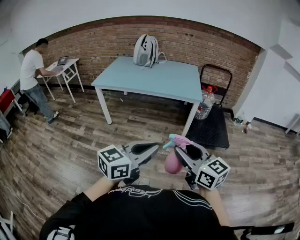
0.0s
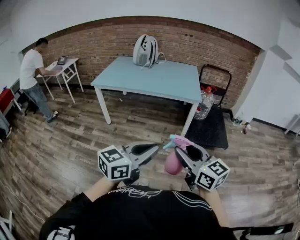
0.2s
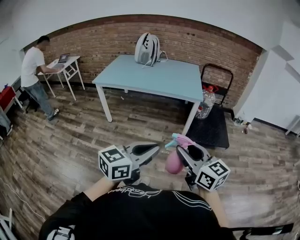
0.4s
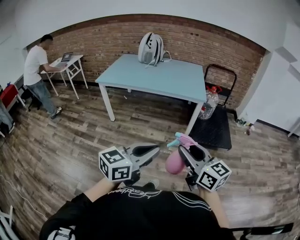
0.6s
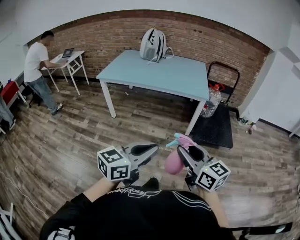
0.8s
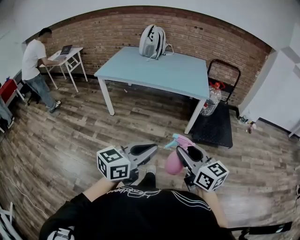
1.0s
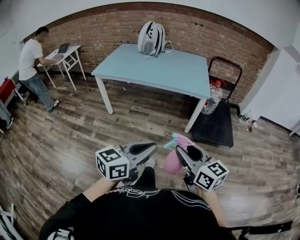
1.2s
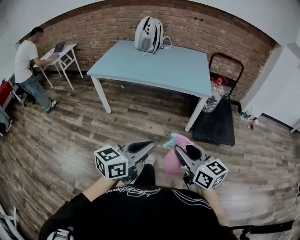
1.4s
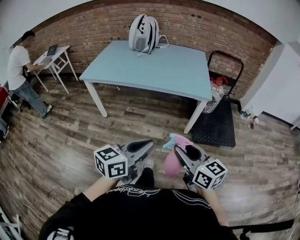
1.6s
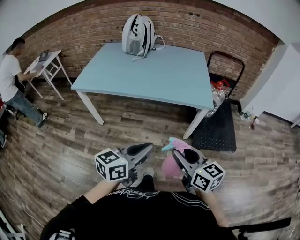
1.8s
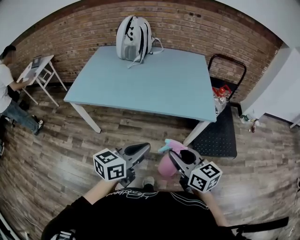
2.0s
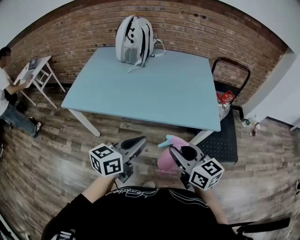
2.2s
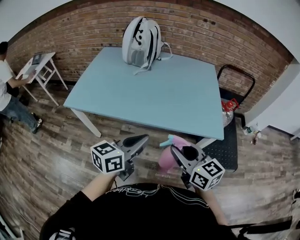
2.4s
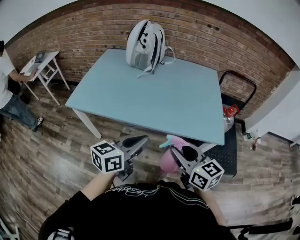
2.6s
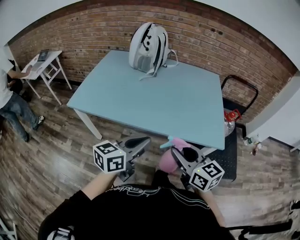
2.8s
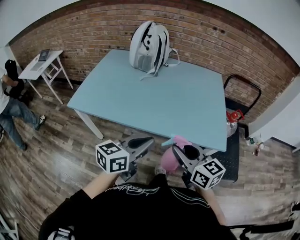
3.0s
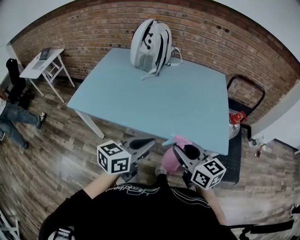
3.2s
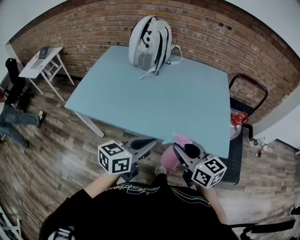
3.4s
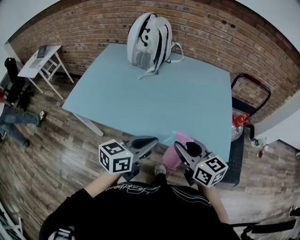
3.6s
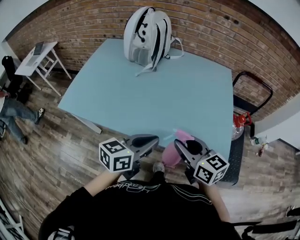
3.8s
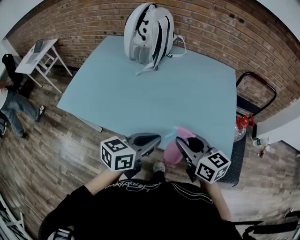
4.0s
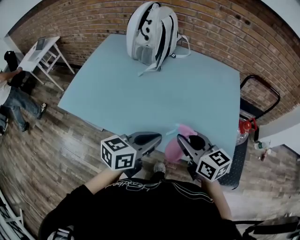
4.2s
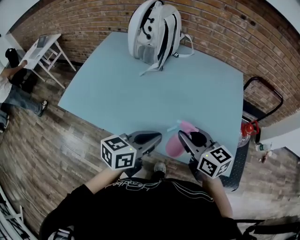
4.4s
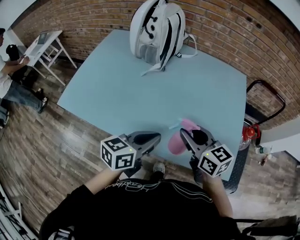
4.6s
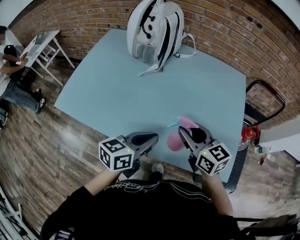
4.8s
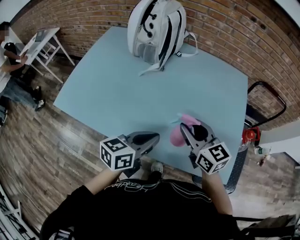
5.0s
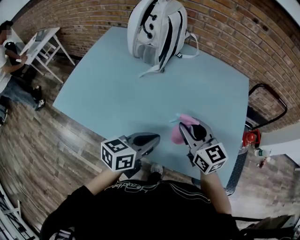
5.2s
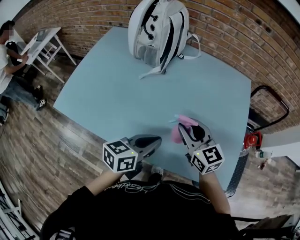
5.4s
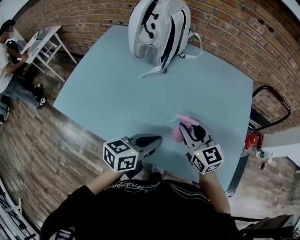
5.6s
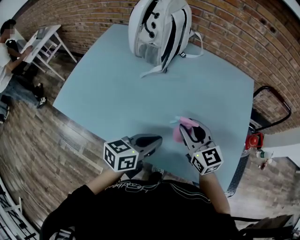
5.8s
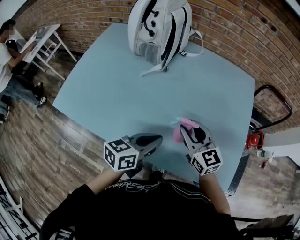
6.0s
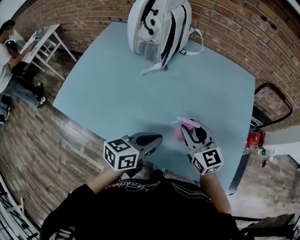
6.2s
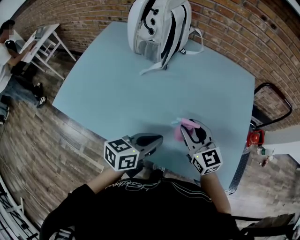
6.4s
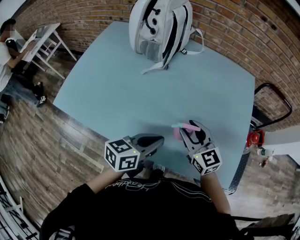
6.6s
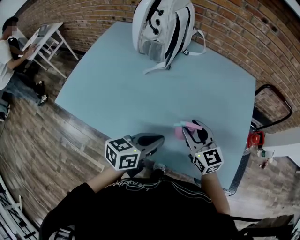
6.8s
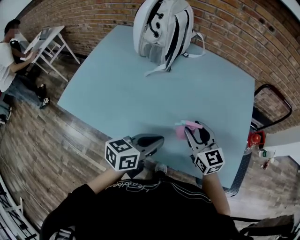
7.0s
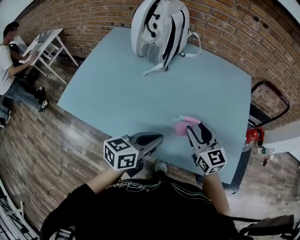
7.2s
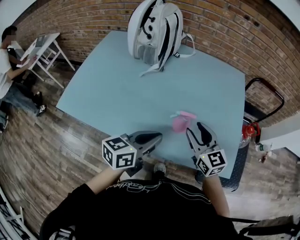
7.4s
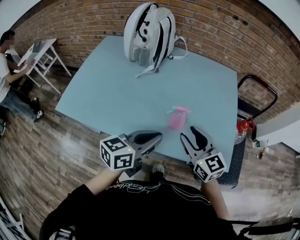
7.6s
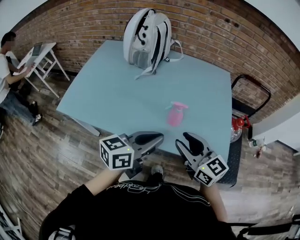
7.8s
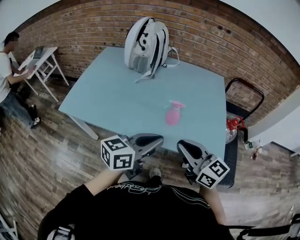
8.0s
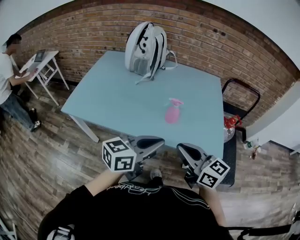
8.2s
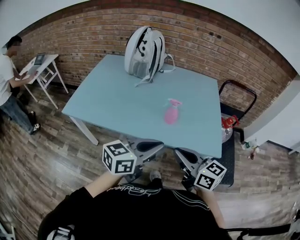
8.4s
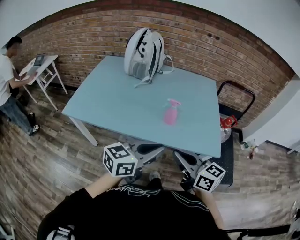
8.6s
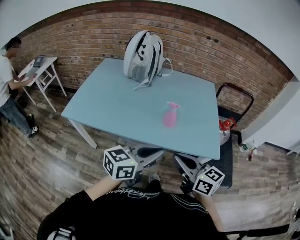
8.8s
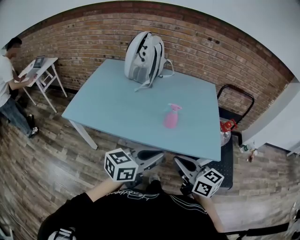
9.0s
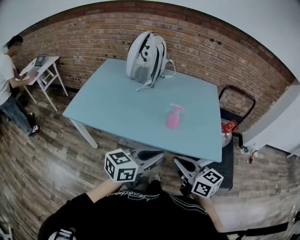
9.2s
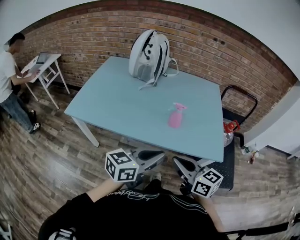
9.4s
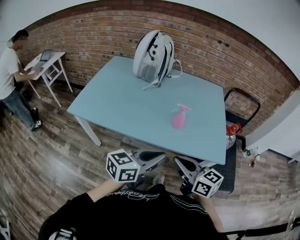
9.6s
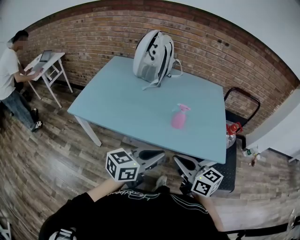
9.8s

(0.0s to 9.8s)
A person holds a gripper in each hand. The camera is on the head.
0.0s - 1.4s: The two grippers go some 15 cm forward and downward.
1.4s - 2.8s: Both grippers are carried forward, about 50 cm.
2.8s - 4.2s: The two grippers go approximately 20 cm forward.
4.2s - 5.6s: The left gripper is displaced forward and downward by some 10 cm. Meanwhile the right gripper travels forward by about 15 cm.
5.6s - 7.0s: The grippers move only a little.
7.0s - 8.4s: Both grippers move backward and upward, roughly 30 cm. The right gripper rotates roughly 20 degrees, and closes. The left gripper rotates roughly 20 degrees.
8.4s - 9.8s: The right gripper changes place by roughly 5 cm.

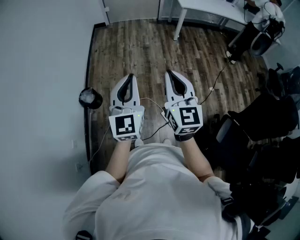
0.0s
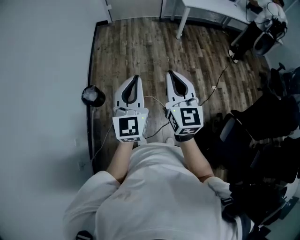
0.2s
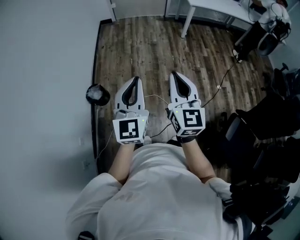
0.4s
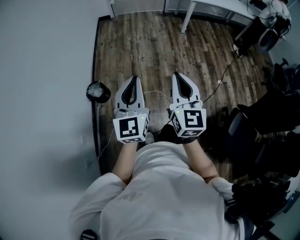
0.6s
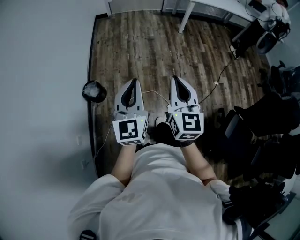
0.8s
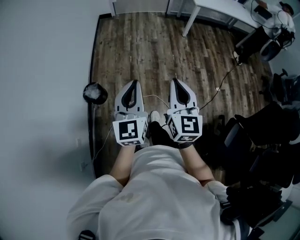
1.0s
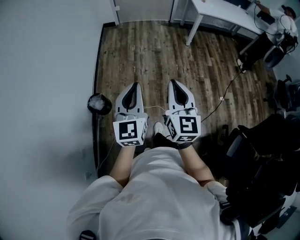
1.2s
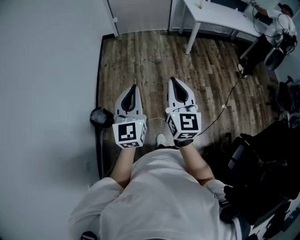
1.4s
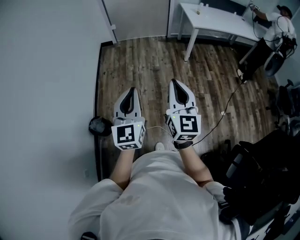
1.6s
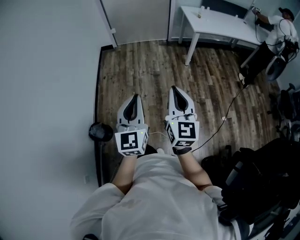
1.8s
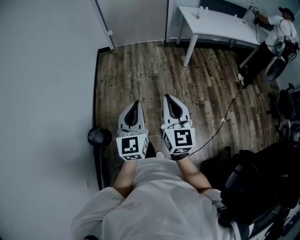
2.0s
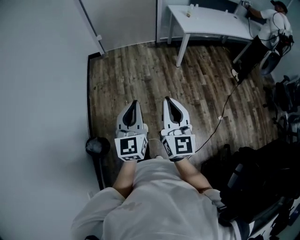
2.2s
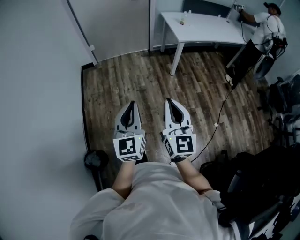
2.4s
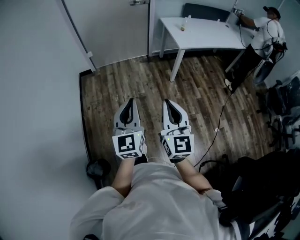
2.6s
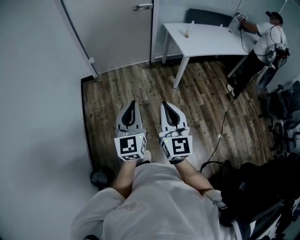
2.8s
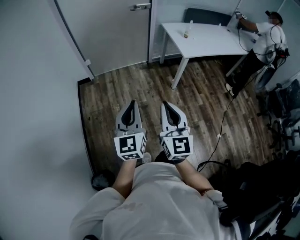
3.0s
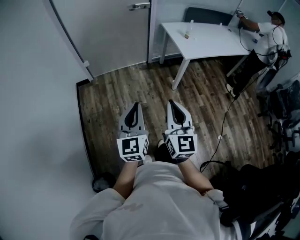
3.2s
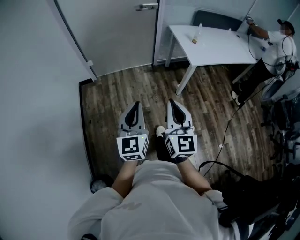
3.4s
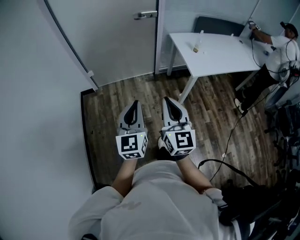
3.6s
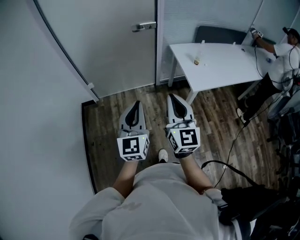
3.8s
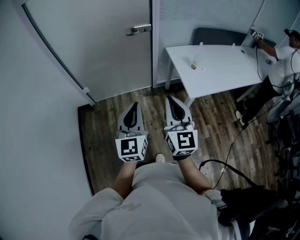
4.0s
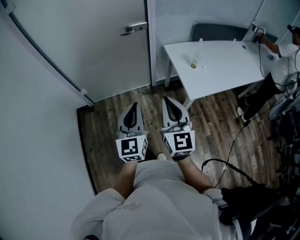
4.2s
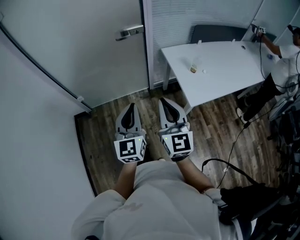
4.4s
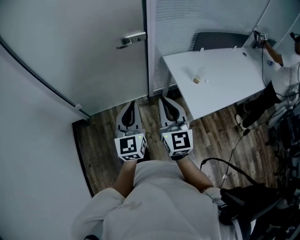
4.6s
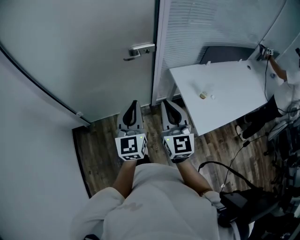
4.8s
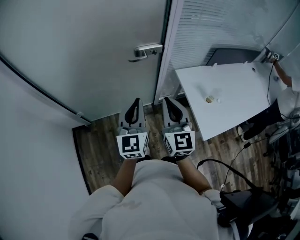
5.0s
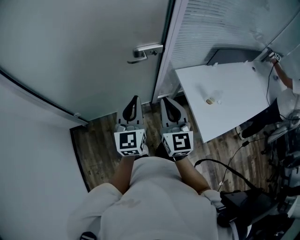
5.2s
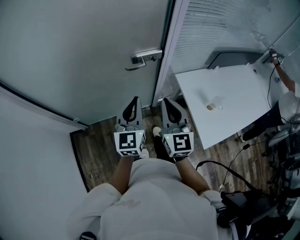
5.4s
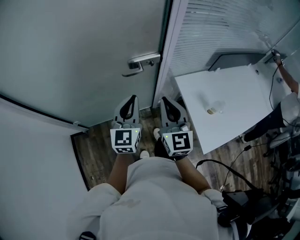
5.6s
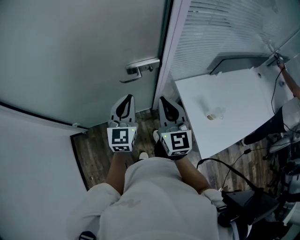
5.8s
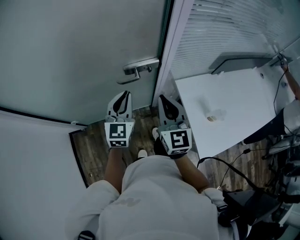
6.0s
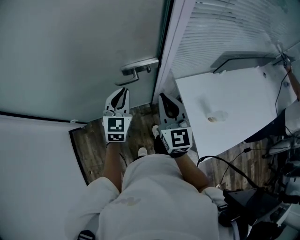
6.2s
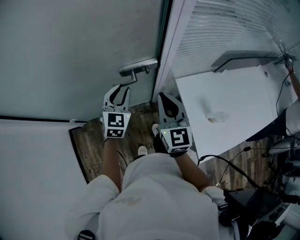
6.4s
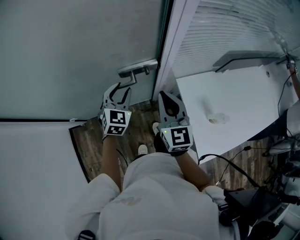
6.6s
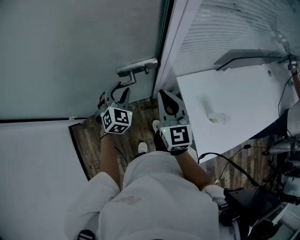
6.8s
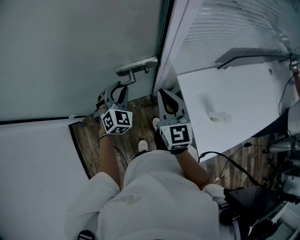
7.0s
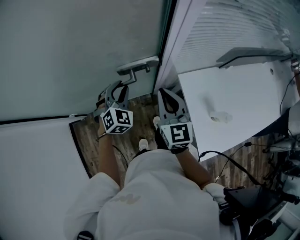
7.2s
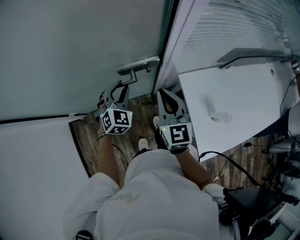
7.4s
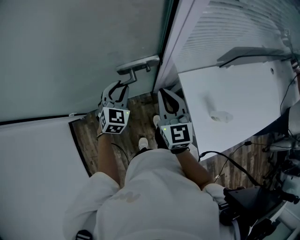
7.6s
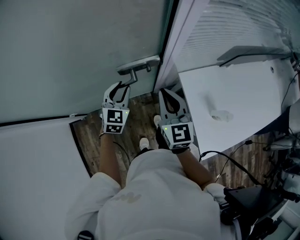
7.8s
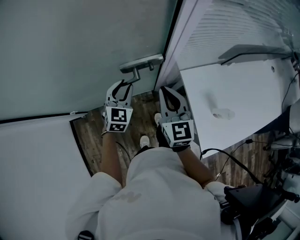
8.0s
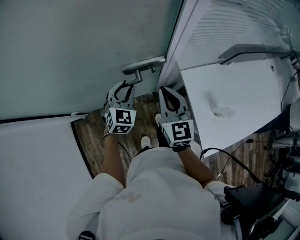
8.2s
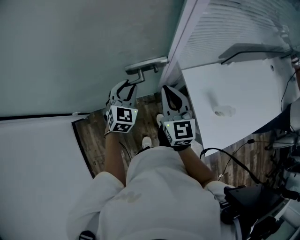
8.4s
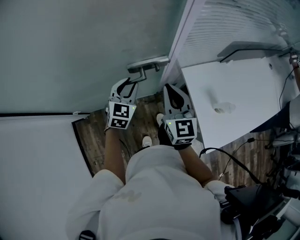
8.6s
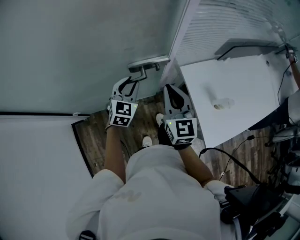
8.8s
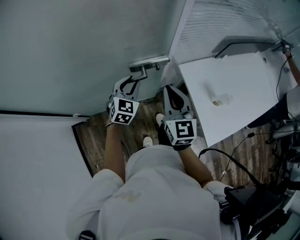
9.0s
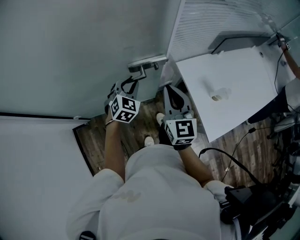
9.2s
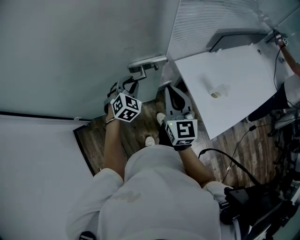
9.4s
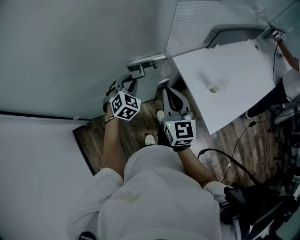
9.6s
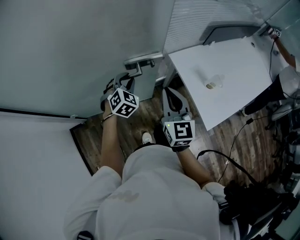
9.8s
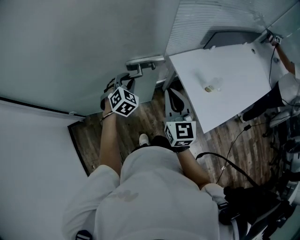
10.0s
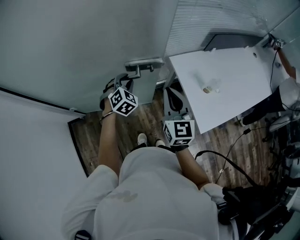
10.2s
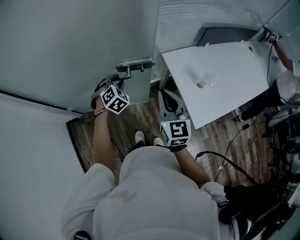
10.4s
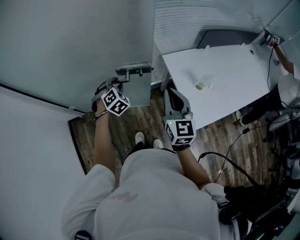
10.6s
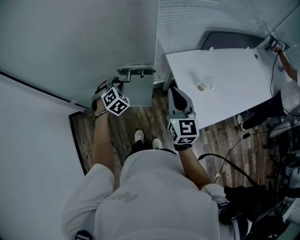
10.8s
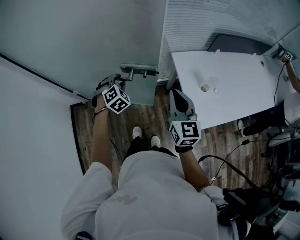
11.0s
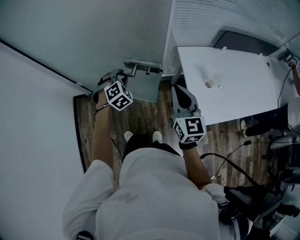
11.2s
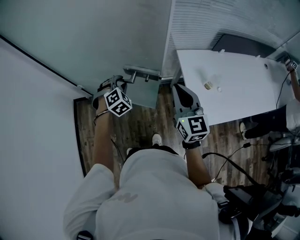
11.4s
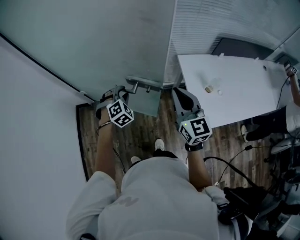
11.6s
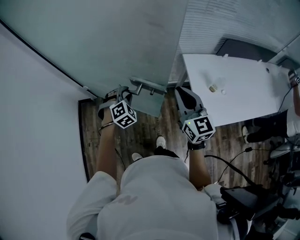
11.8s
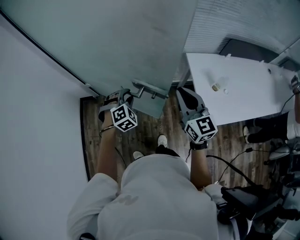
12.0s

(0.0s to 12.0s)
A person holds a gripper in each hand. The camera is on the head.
0.0s - 1.6s: Both grippers move forward, roughly 25 cm.
1.6s - 3.0s: The grippers both shift forward by some 40 cm.
3.0s - 4.4s: The pair of grippers is taken forward, approximately 50 cm.
4.4s - 6.0s: The pair of grippers is taken forward, approximately 50 cm.
6.0s - 7.6s: The right gripper shifts some 10 cm forward and downward. Meanwhile the left gripper goes some 15 cm downward and forward, turns by some 30 degrees, and opens up.
7.6s - 9.0s: The left gripper heads backward, covering approximately 5 cm. Meanwhile the right gripper is displaced backward by approximately 10 cm.
9.0s - 10.4s: The left gripper heads backward, covering about 10 cm, and turns by roughly 30 degrees. The right gripper goes roughly 15 cm backward and to the right.
10.4s - 12.0s: The left gripper heads backward, covering roughly 20 cm, while the right gripper moves backward, approximately 10 cm, and turns by some 30 degrees.

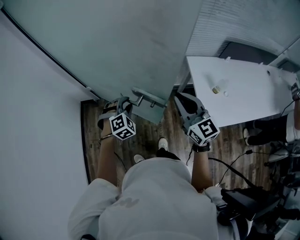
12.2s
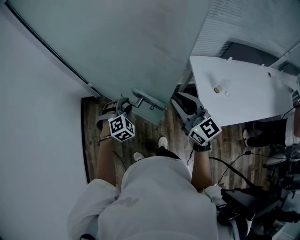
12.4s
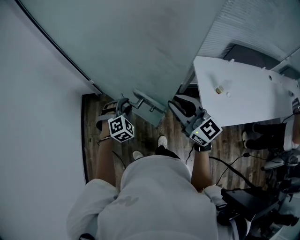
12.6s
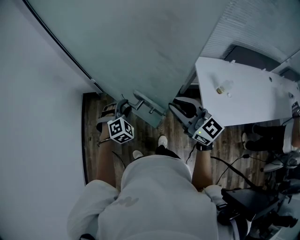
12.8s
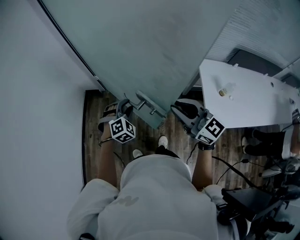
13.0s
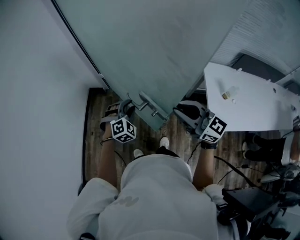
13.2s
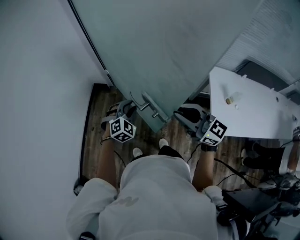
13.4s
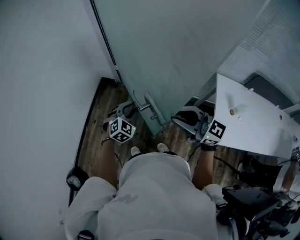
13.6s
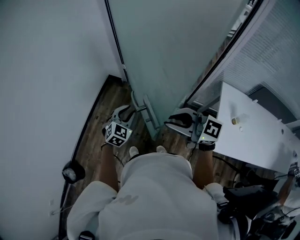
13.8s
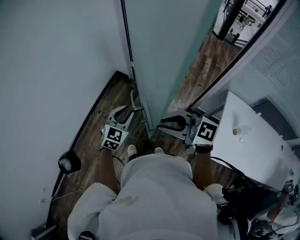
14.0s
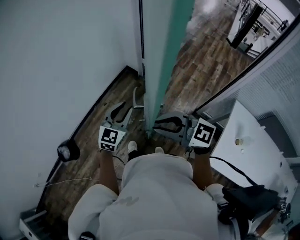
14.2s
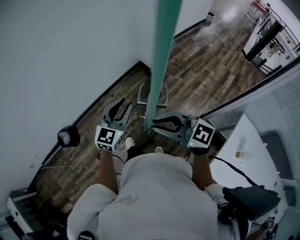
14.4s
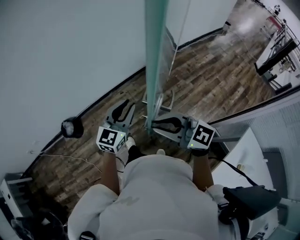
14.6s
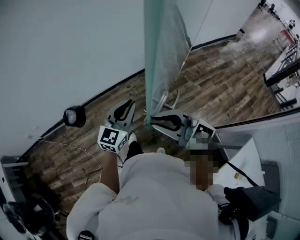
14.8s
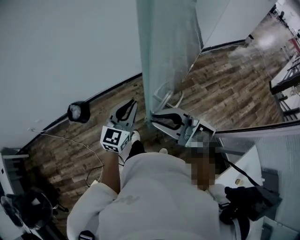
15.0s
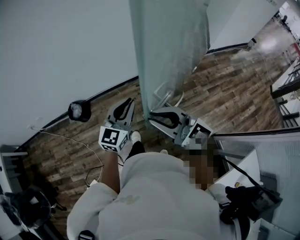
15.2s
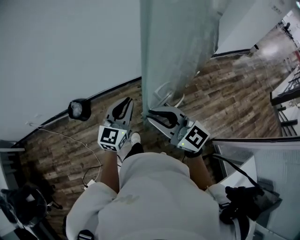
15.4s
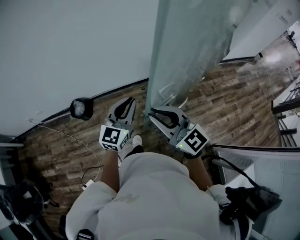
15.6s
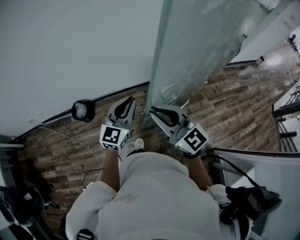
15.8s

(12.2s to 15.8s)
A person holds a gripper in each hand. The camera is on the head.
12.2s - 14.0s: The left gripper ends up some 25 cm from where it was, and rotates around the line of its fingers by about 50 degrees, counterclockwise from behind; the right gripper ends up approximately 25 cm from where it was, and changes its angle by some 80 degrees.
14.0s - 15.8s: The right gripper moves approximately 40 cm. The left gripper changes place by some 40 cm, and swivels about 50 degrees.
